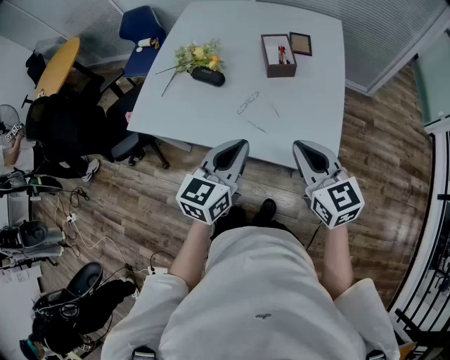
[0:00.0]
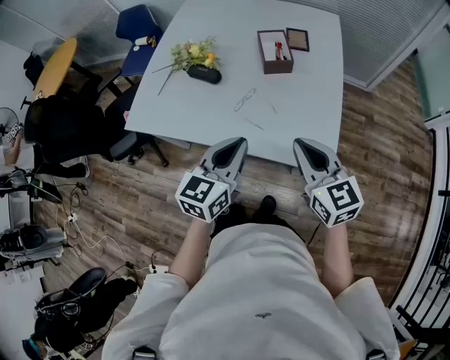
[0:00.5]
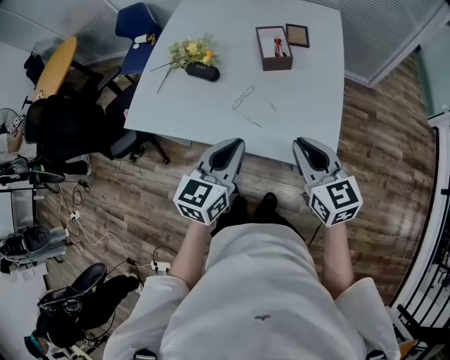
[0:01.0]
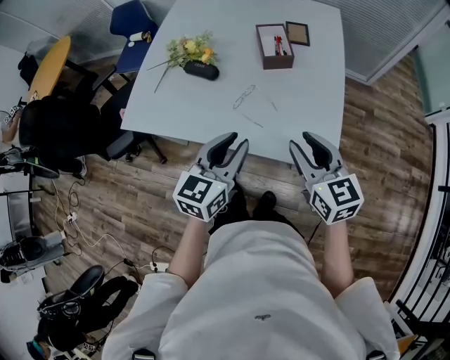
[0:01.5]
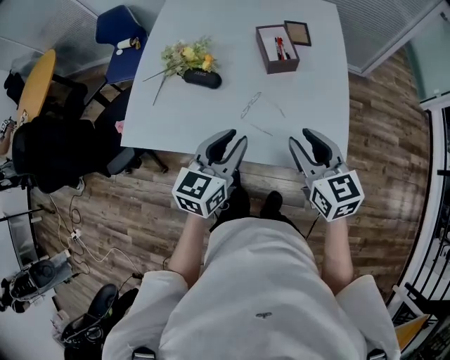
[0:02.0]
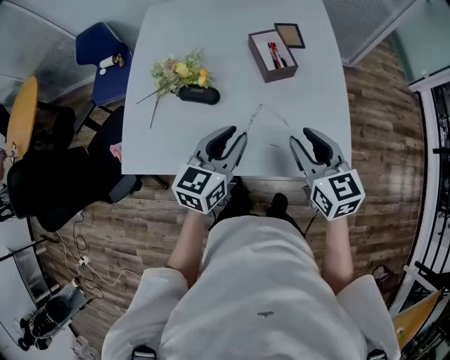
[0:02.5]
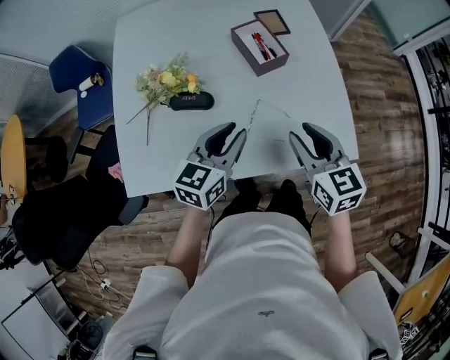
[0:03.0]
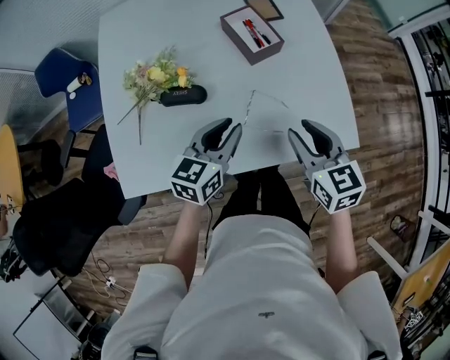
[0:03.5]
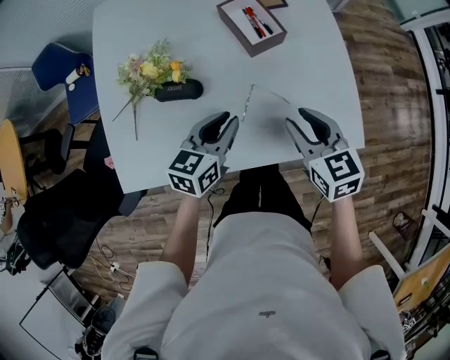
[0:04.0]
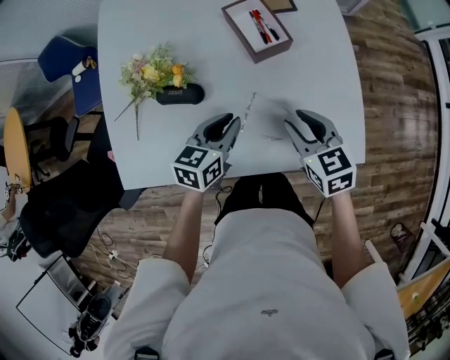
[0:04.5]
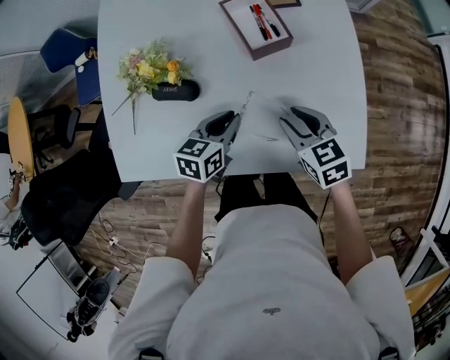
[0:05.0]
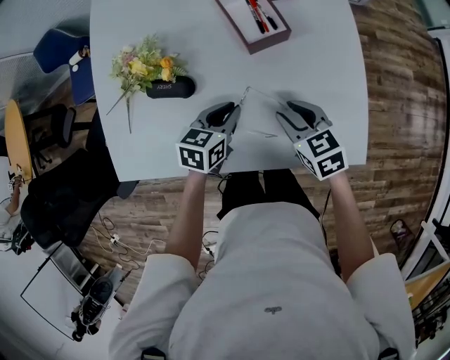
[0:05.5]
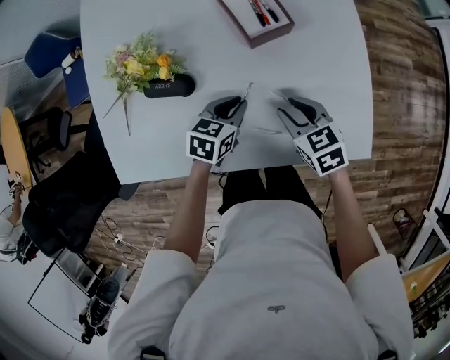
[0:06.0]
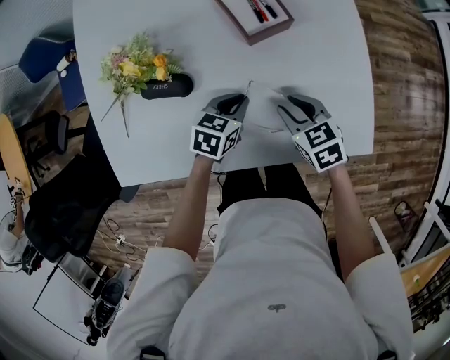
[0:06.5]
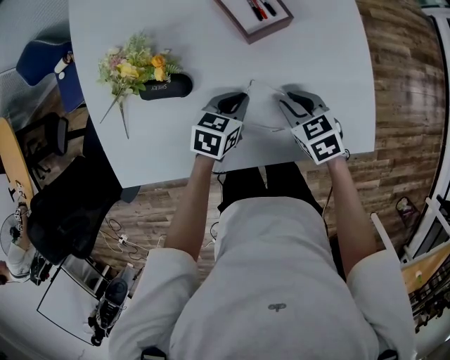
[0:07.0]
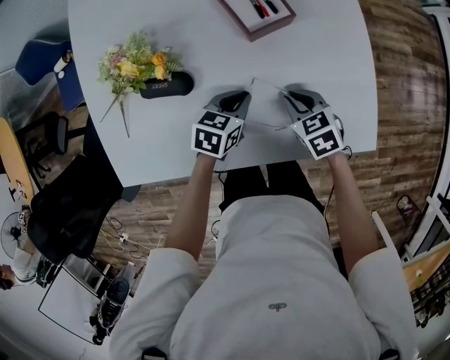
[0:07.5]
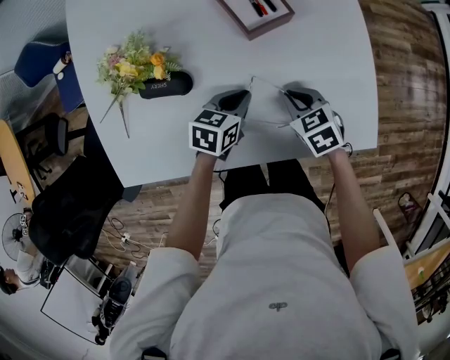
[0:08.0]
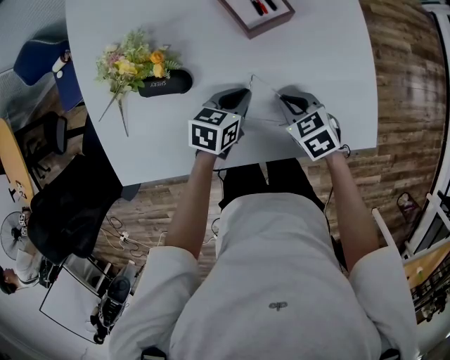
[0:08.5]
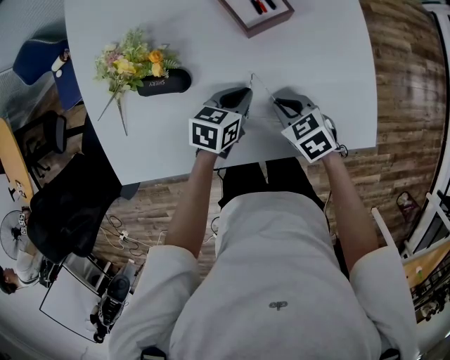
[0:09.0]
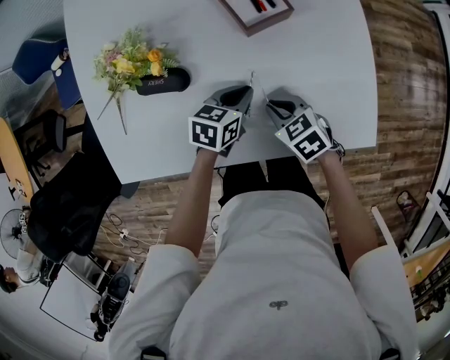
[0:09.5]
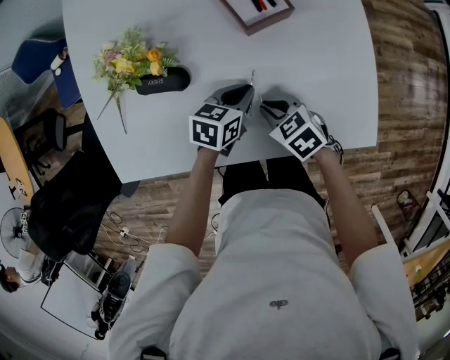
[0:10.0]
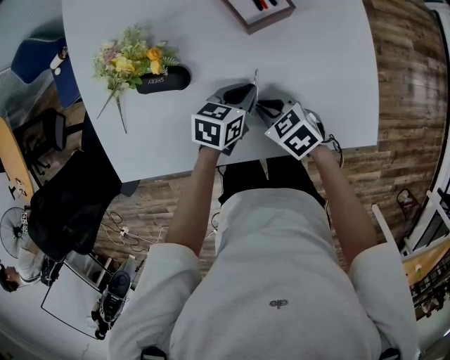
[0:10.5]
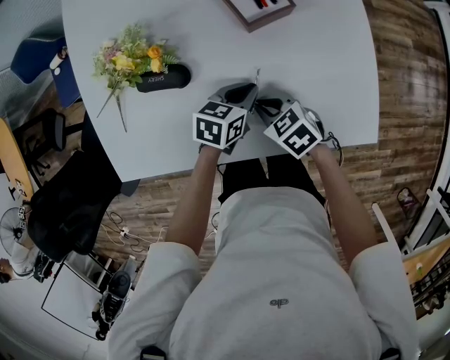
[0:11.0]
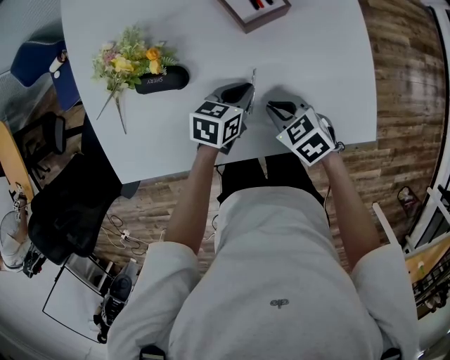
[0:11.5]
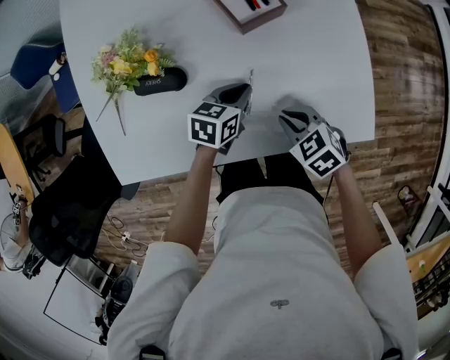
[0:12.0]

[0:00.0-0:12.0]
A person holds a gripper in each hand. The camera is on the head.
0:00.0 to 0:02.0: The left gripper travels forward and to the left by approximately 10 cm, and opens; the right gripper goes approximately 5 cm forward, and opens up.
0:02.0 to 0:04.0: The right gripper goes some 10 cm downward and forward; the left gripper is displaced forward, downward and to the left by about 15 cm, and swivels approximately 20 degrees.
0:04.0 to 0:06.0: Both grippers travel together downward, approximately 15 cm.
0:06.0 to 0:08.0: The right gripper goes some 5 cm downward, and closes up.
0:08.0 to 0:10.0: The right gripper moves to the left, roughly 5 cm.
0:10.0 to 0:12.0: The right gripper shifts roughly 5 cm to the right.

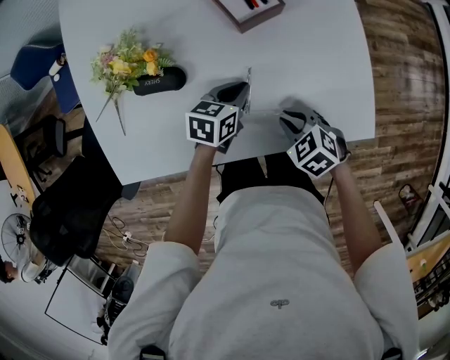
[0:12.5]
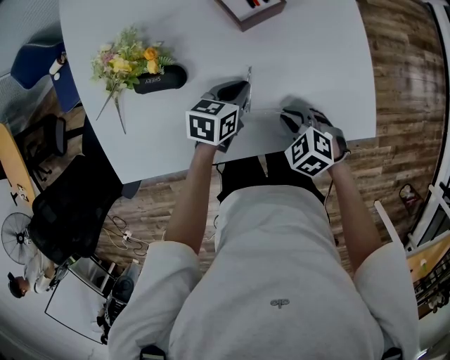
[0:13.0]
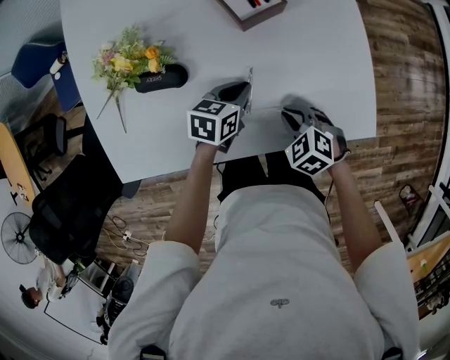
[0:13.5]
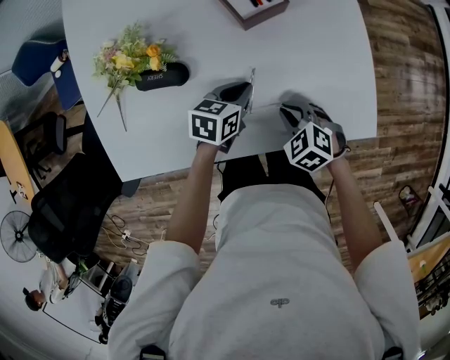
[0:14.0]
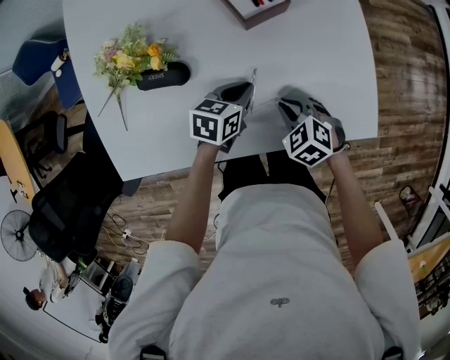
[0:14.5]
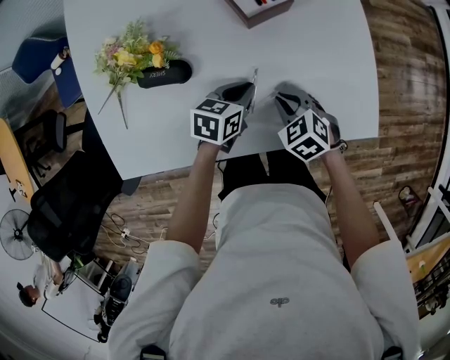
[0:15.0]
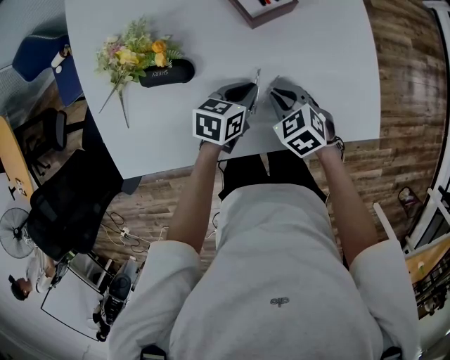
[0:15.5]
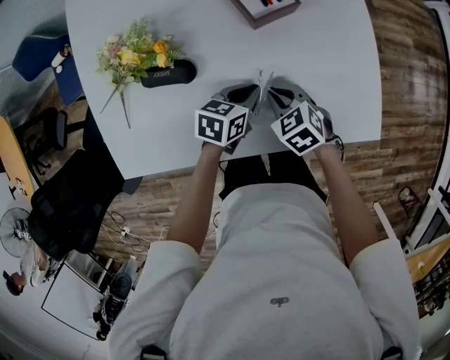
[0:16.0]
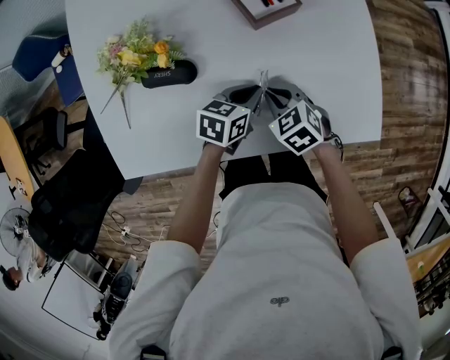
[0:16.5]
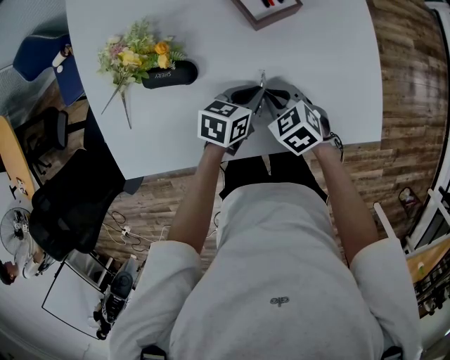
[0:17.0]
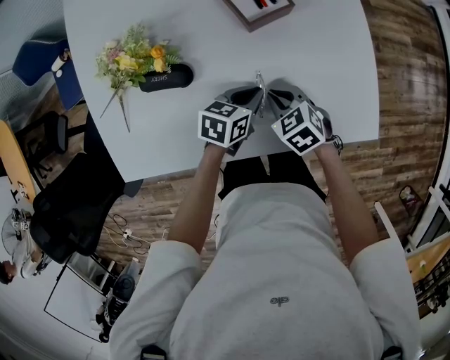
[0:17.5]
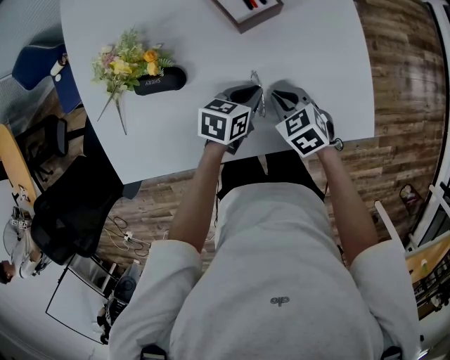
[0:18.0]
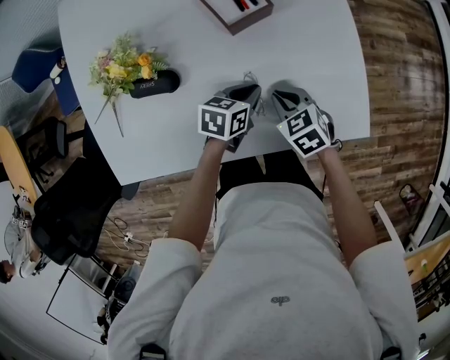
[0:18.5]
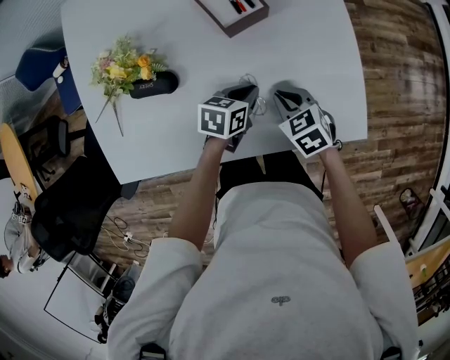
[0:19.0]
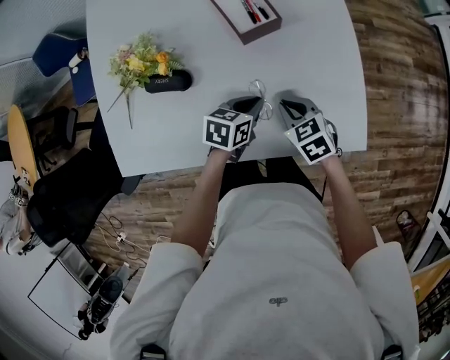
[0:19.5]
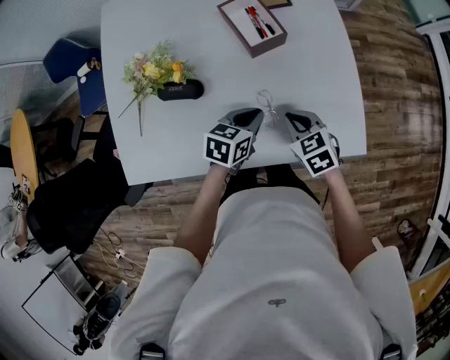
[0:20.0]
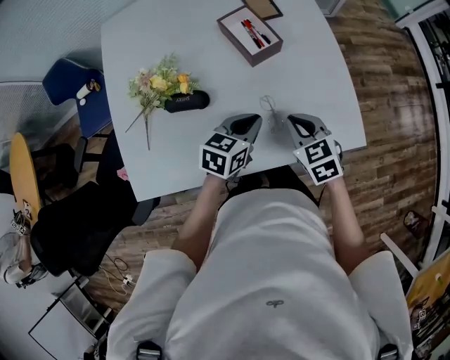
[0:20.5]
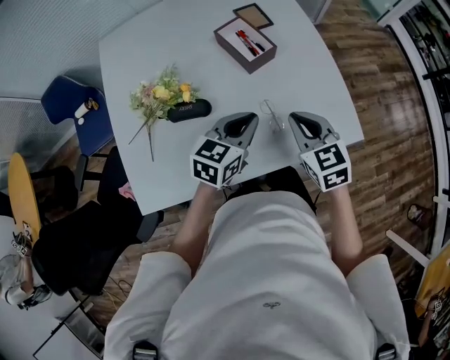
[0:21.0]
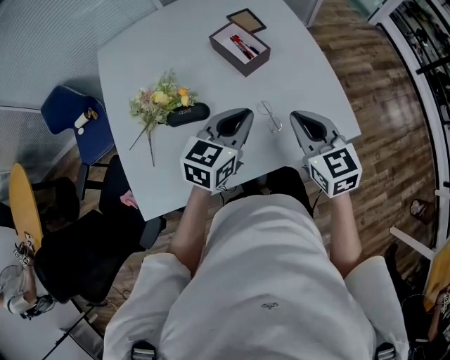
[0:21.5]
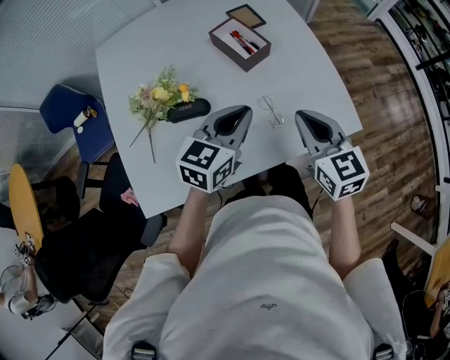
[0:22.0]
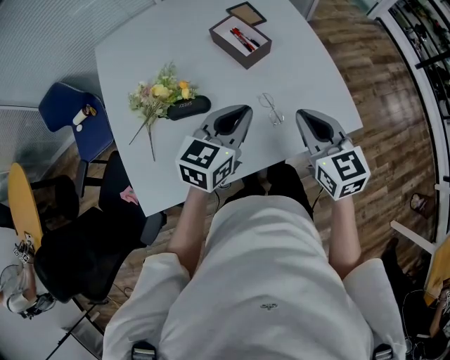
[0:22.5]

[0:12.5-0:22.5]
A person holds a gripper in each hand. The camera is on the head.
0:12.5 to 0:14.5: The grippers make only small movements.
0:14.5 to 0:16.5: The right gripper travels to the left by about 5 cm.
0:16.5 to 0:18.5: The left gripper shifts by approximately 5 cm. The right gripper shifts roughly 5 cm to the right.
0:18.5 to 0:20.5: Both grippers travel together upward, approximately 15 cm.
0:20.5 to 0:22.5: Both grippers travel together upward, roughly 10 cm. The right gripper changes its angle by about 30 degrees.

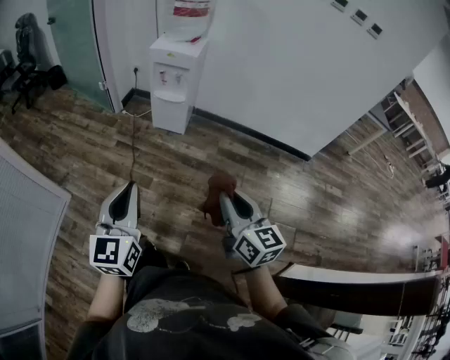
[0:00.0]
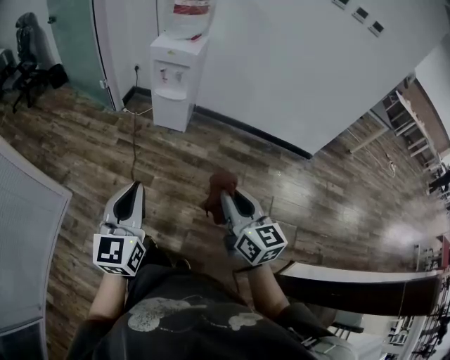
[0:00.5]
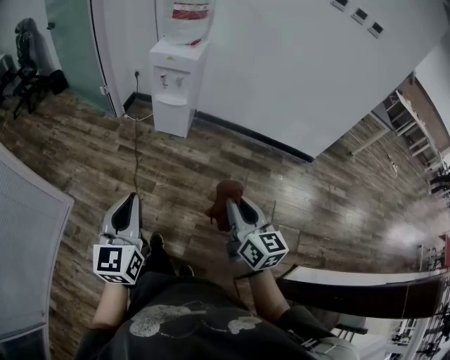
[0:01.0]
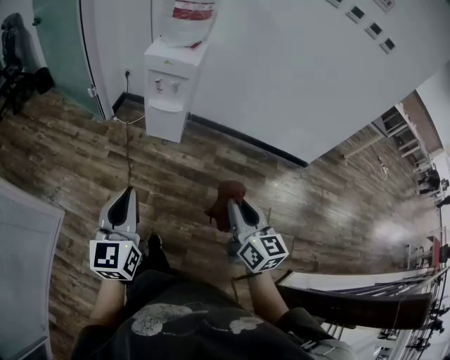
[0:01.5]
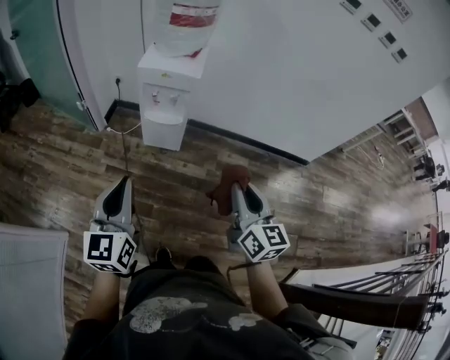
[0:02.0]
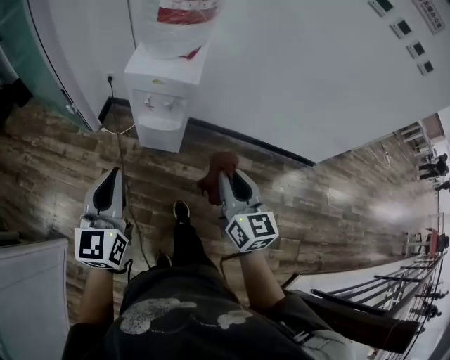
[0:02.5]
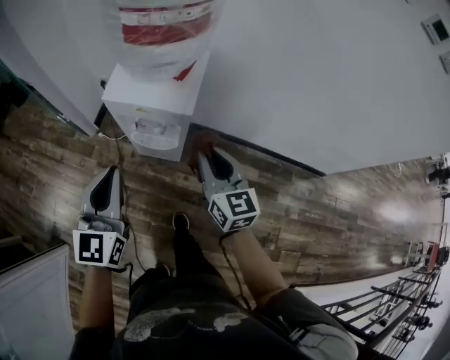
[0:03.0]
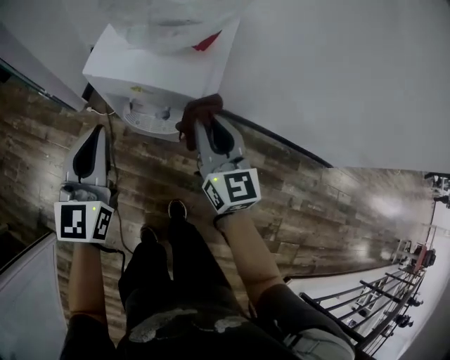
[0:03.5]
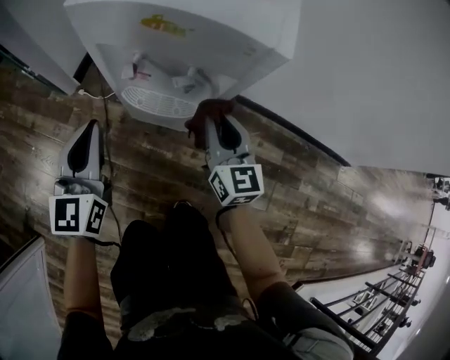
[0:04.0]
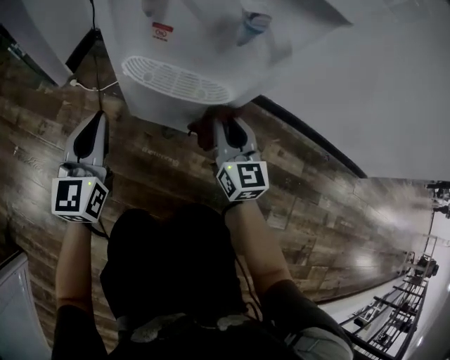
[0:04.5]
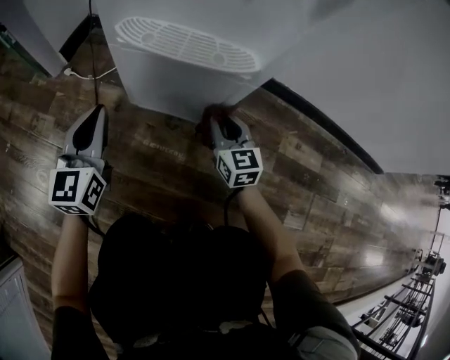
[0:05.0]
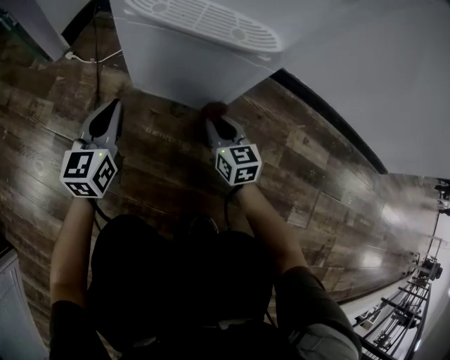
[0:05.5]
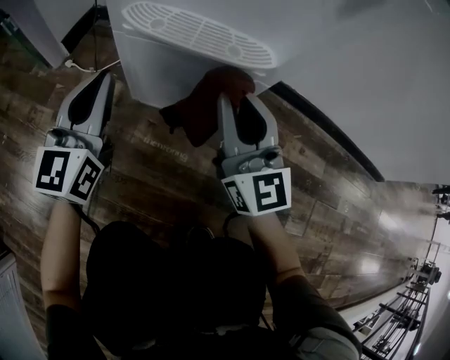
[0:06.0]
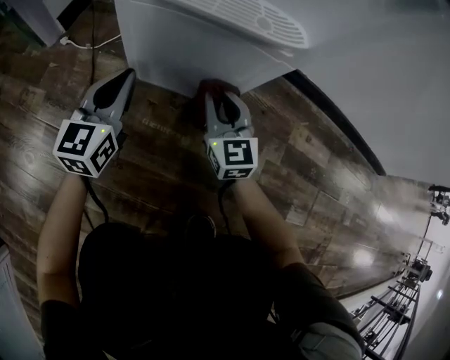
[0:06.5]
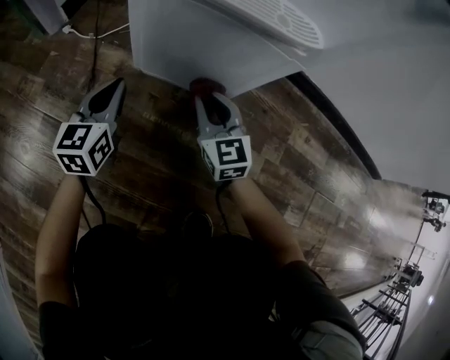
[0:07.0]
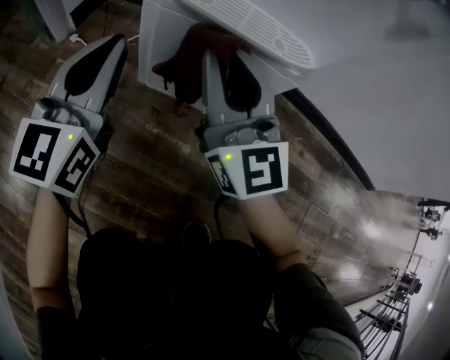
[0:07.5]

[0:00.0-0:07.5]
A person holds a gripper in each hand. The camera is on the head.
0:00.0 to 0:02.0: Both grippers move forward, about 30 cm.
0:02.0 to 0:04.0: The pair of grippers is taken forward, approximately 50 cm. The grippers both shift downward by approximately 35 cm.
0:04.0 to 0:05.5: The grippers both shift downward by about 40 cm.
0:05.5 to 0:07.5: The right gripper swings up and down, approximately 30 cm each way, with 2 reversals, and tips its fingers upward by approximately 40 degrees; the left gripper swings up and down, roughly 20 cm each way, with 2 reversals.
